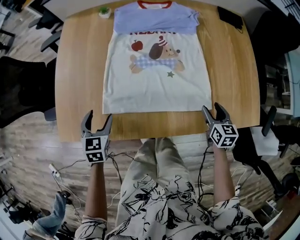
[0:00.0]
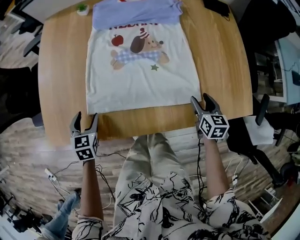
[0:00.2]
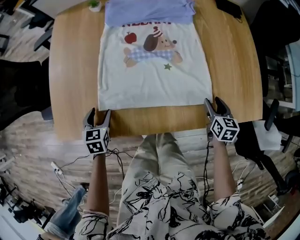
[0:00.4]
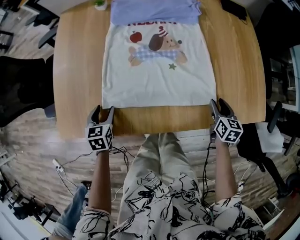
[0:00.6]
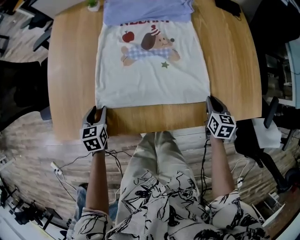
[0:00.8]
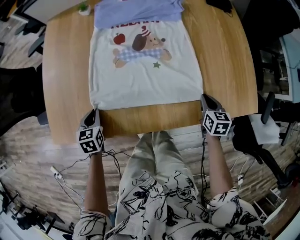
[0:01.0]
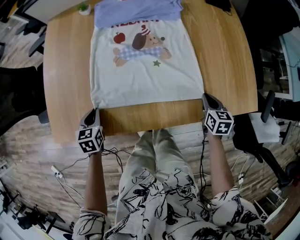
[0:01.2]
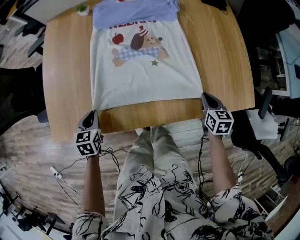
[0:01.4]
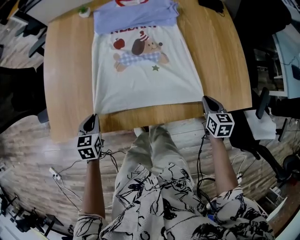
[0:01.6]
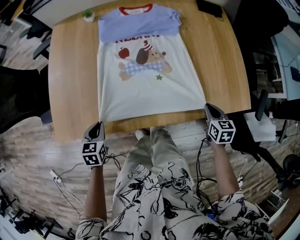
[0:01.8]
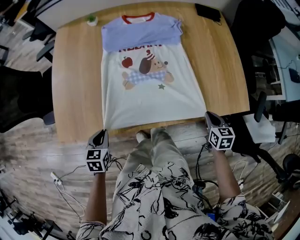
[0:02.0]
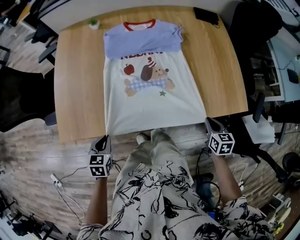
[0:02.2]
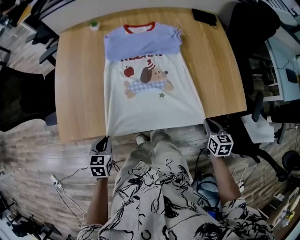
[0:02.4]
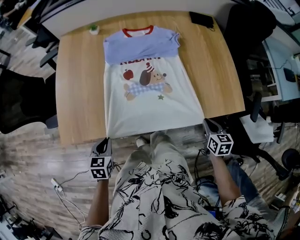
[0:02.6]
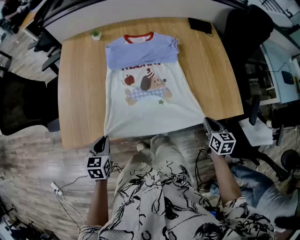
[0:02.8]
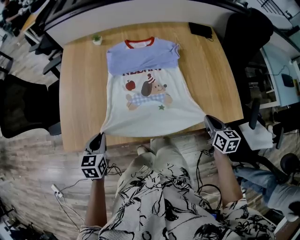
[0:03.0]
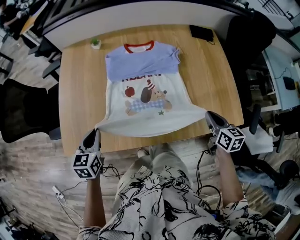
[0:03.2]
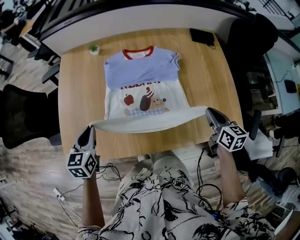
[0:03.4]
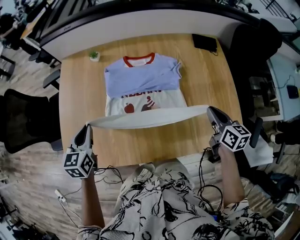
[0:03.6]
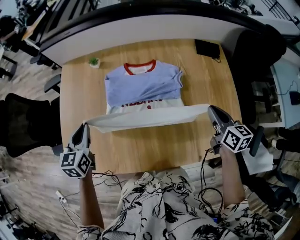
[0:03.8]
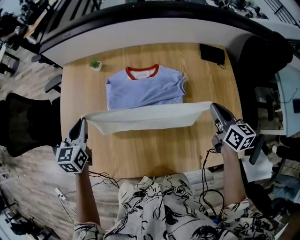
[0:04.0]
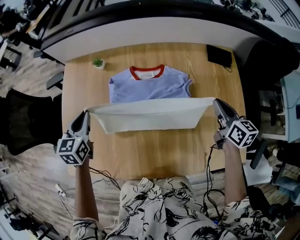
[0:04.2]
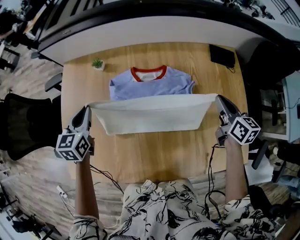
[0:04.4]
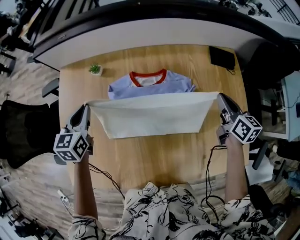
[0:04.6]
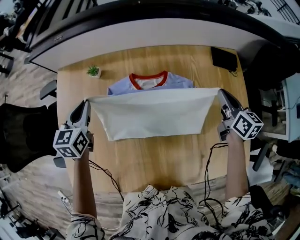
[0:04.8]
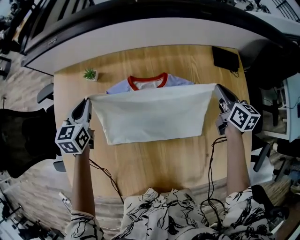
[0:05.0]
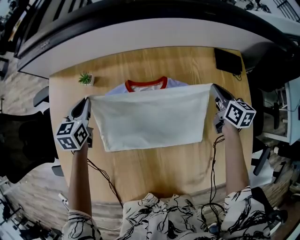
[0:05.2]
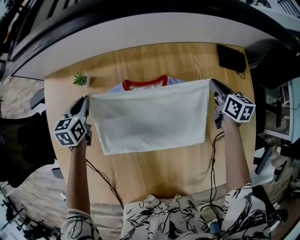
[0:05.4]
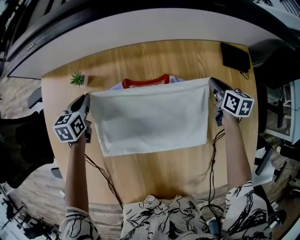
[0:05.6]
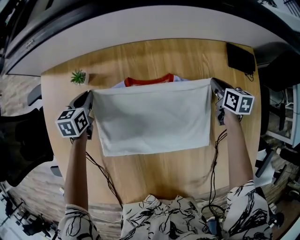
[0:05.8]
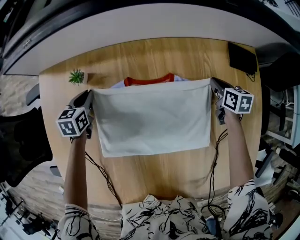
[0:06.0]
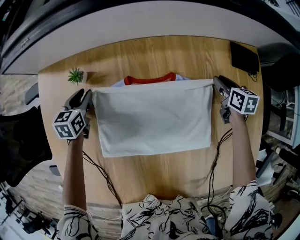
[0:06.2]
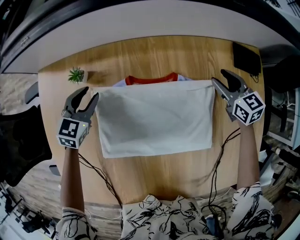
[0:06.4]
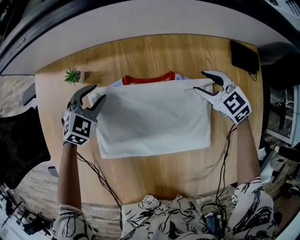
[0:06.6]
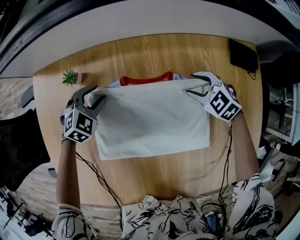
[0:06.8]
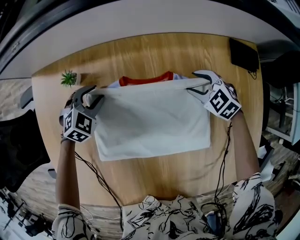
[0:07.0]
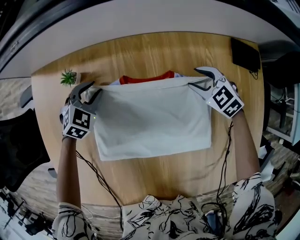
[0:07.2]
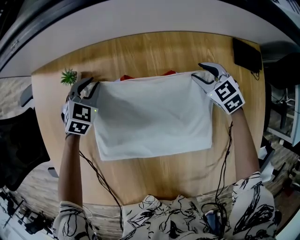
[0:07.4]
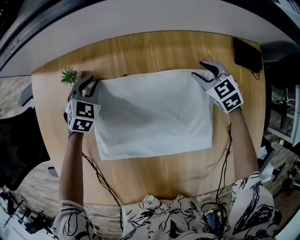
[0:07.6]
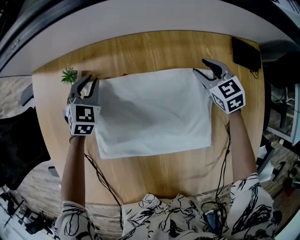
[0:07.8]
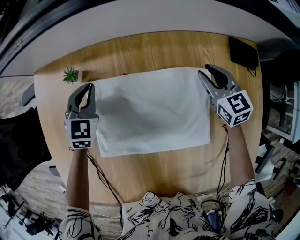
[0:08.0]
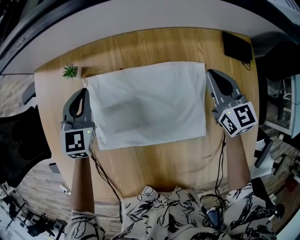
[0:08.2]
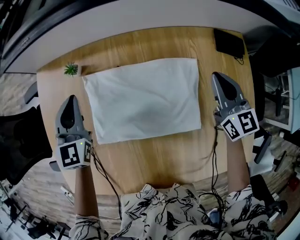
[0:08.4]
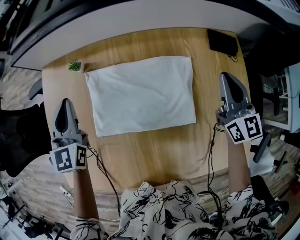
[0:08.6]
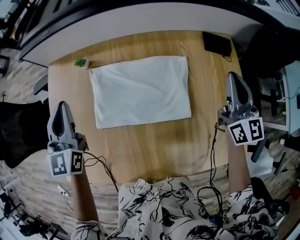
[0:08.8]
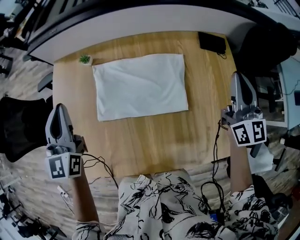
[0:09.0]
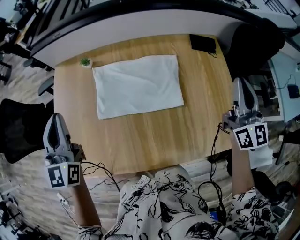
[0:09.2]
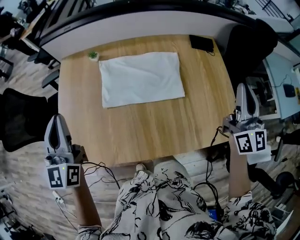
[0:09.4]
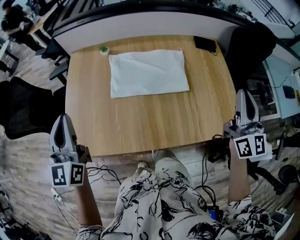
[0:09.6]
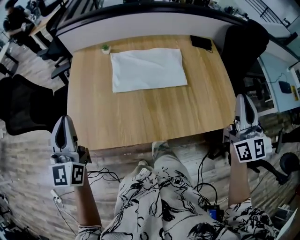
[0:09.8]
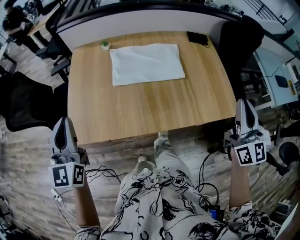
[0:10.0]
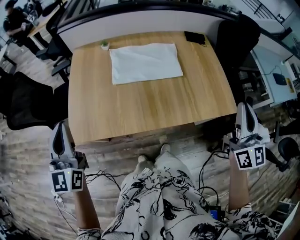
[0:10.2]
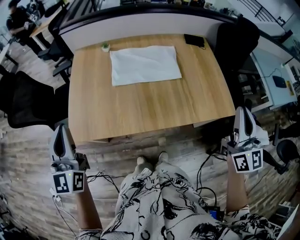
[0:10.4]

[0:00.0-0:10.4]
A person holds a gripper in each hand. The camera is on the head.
0:00.0 to 0:01.4: The left gripper changes place by about 5 cm, and closes its fingers. The right gripper closes up.
0:01.4 to 0:03.0: The right gripper travels upward and backward by approximately 15 cm. Meanwhile the left gripper travels upward by approximately 10 cm.
0:03.0 to 0:04.4: The grippers both shift forward by about 35 cm.
0:04.4 to 0:06.0: Both grippers move downward and forward, approximately 30 cm. The right gripper turns by some 20 degrees.
0:06.0 to 0:07.4: The left gripper is displaced to the right by approximately 5 cm, and twists about 40 degrees clockwise, seen from behind, while the right gripper moves to the left, some 10 cm, and twists about 50 degrees counterclockwise, seen from behind.
0:07.4 to 0:09.0: The grippers both shift upward and backward by some 50 cm. The left gripper tips its fingers upward by about 50 degrees. Meanwhile the right gripper tips its fingers upward by some 50 degrees, and closes its fingers.
0:09.0 to 0:10.4: The pair of grippers is taken backward, approximately 40 cm.

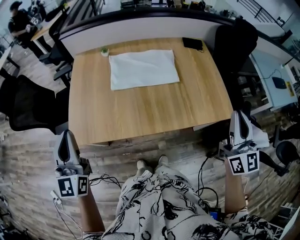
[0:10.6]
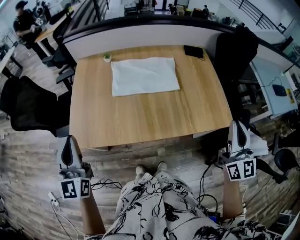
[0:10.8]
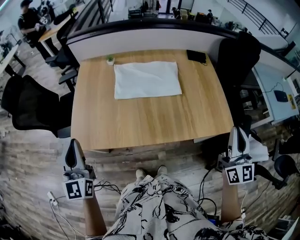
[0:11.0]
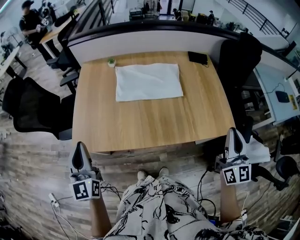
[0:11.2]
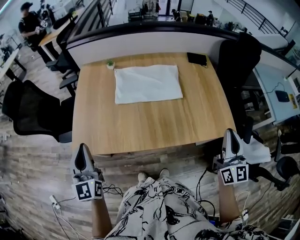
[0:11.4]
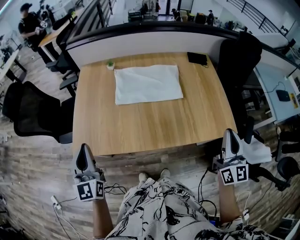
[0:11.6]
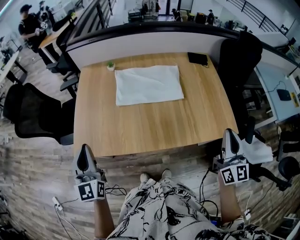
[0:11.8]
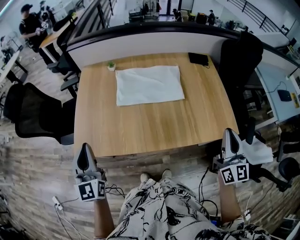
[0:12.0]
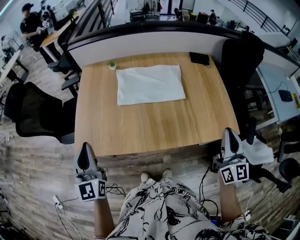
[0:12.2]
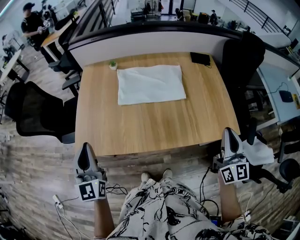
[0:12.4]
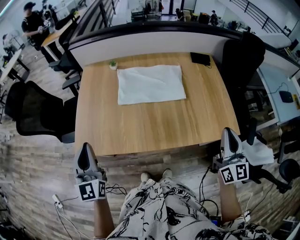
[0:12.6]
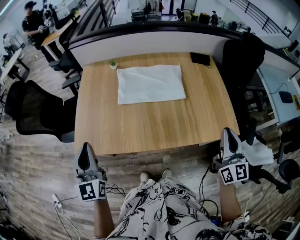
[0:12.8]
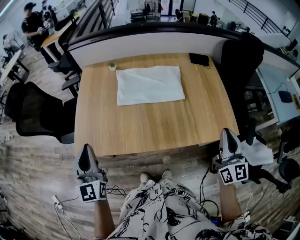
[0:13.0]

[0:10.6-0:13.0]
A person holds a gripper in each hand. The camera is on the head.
0:10.6 to 0:11.8: The grippers both shift downward by approximately 5 cm.
0:11.8 to 0:13.0: The grippers stay close to where they were, moving slightly.

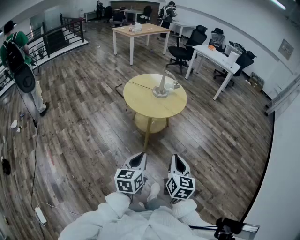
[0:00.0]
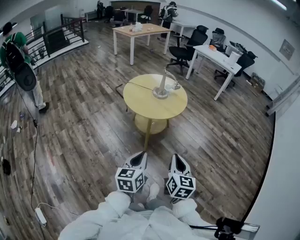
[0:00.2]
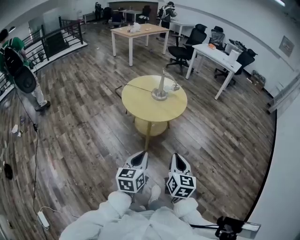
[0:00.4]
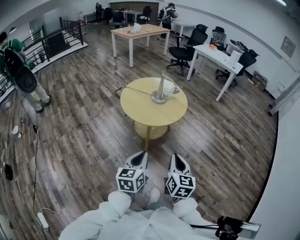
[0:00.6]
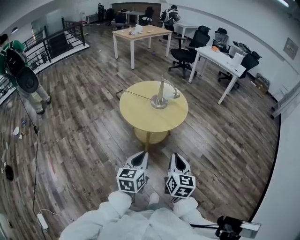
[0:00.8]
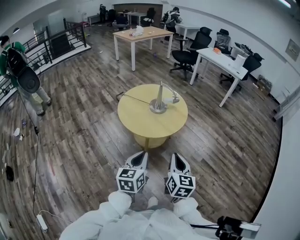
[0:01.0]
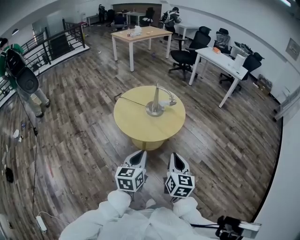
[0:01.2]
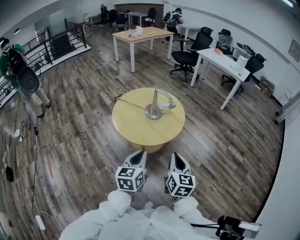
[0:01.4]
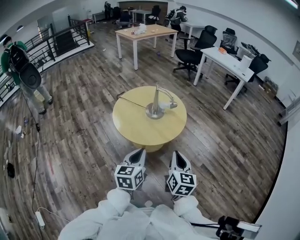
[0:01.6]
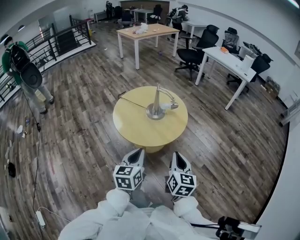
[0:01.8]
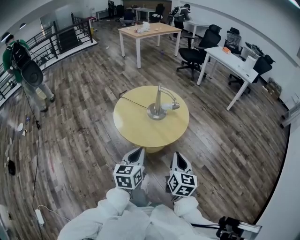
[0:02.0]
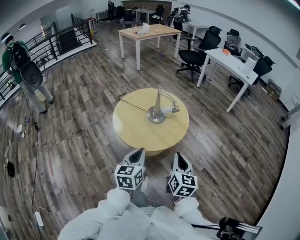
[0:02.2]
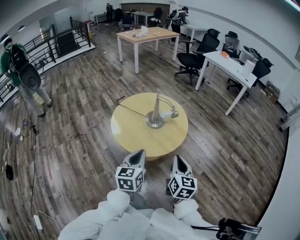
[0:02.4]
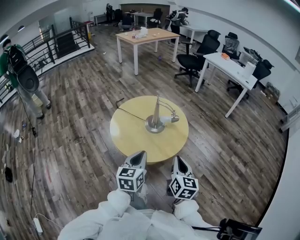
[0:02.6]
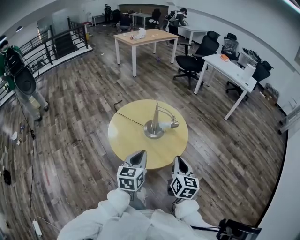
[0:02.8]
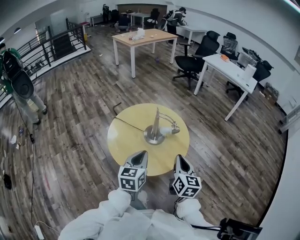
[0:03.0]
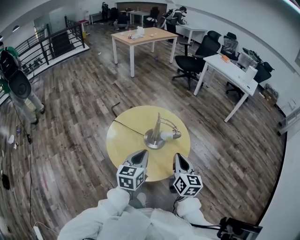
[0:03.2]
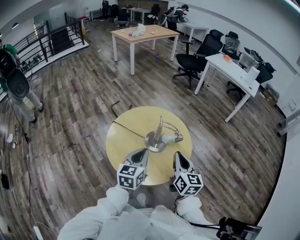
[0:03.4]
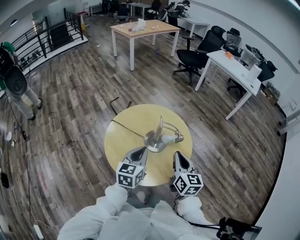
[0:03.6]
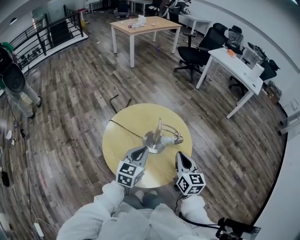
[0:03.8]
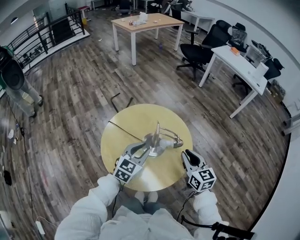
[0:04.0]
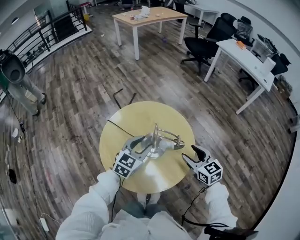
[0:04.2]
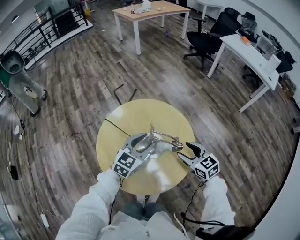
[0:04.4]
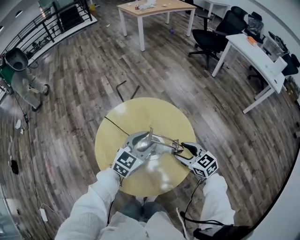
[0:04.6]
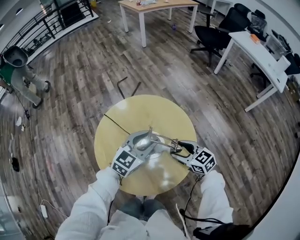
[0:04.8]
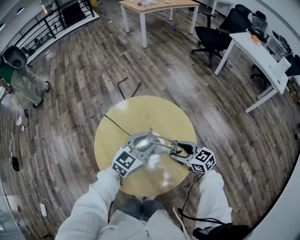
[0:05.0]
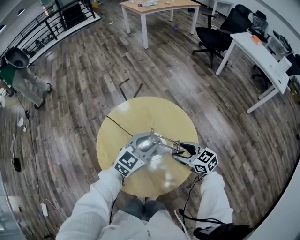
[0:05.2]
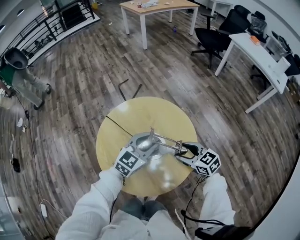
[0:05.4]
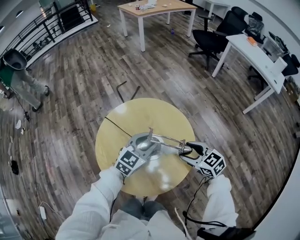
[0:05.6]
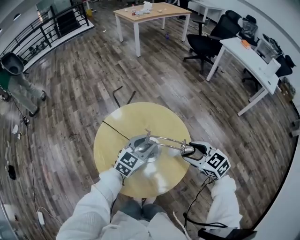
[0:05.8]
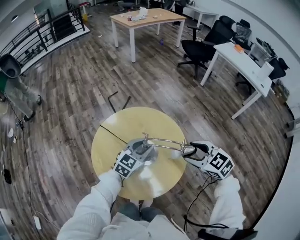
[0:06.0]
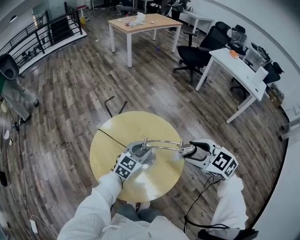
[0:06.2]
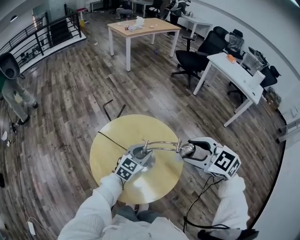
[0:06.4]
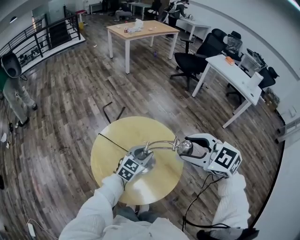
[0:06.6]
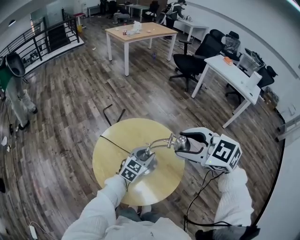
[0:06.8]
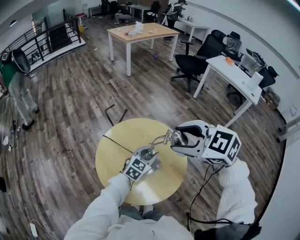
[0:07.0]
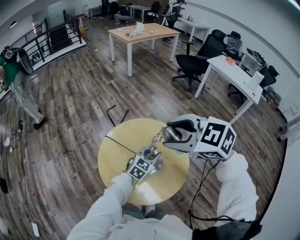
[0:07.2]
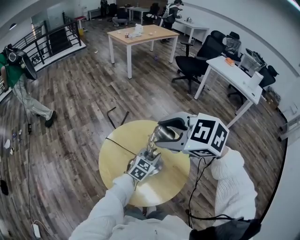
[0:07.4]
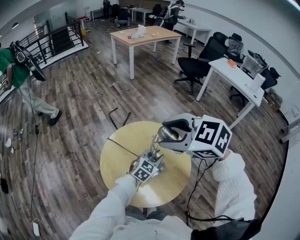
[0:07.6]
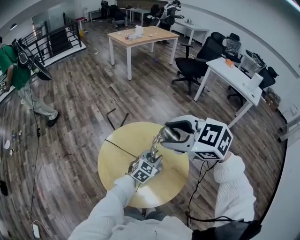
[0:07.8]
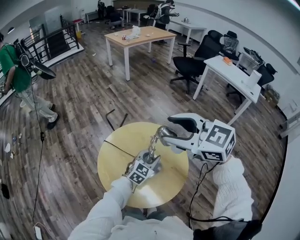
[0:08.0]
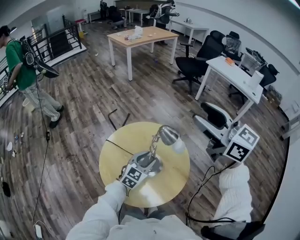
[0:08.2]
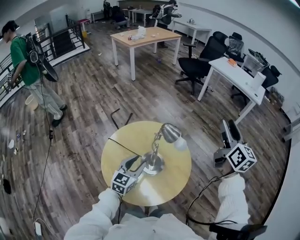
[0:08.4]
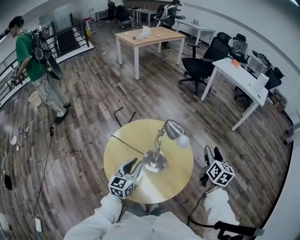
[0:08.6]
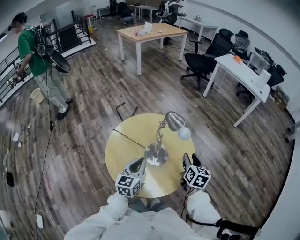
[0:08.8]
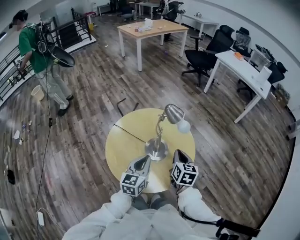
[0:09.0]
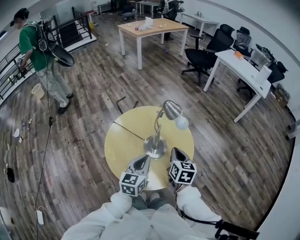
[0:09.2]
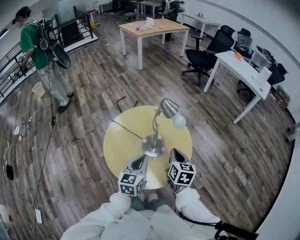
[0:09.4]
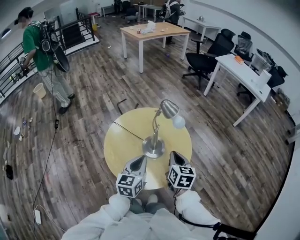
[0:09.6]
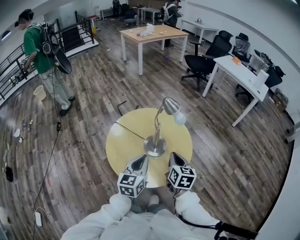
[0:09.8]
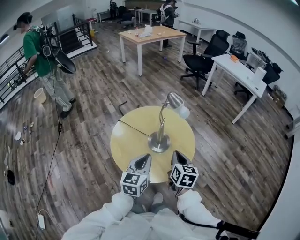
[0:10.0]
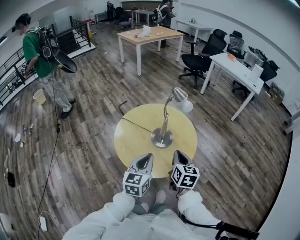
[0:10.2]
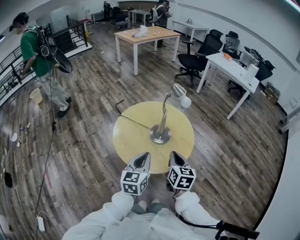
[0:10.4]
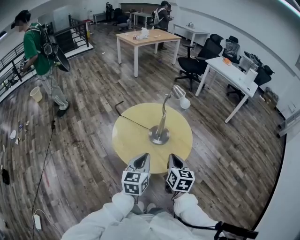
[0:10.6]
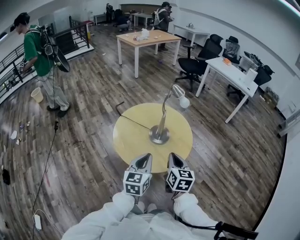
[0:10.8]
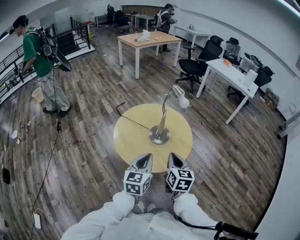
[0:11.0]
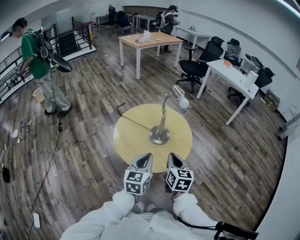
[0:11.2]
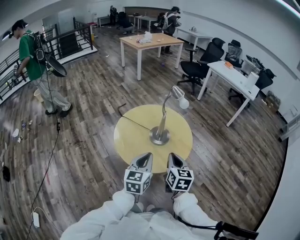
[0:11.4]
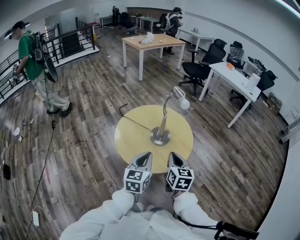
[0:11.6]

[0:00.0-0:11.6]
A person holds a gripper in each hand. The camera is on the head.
0:00.0 to 0:01.4: Both grippers move forward, some 30 cm.
0:01.4 to 0:02.8: Both grippers move forward, approximately 20 cm.
0:02.8 to 0:04.4: Both grippers move forward, roughly 30 cm. The left gripper rotates some 30 degrees, and opens. The right gripper rotates about 50 degrees, and opens up.
0:04.4 to 0:05.8: The right gripper is displaced upward by about 5 cm.
0:05.8 to 0:07.2: The right gripper heads upward and to the left, covering some 30 cm.
0:07.2 to 0:08.8: The right gripper travels downward by about 25 cm, and swivels roughly 80 degrees. Meanwhile the left gripper changes place by some 15 cm, rotates roughly 30 degrees, and closes.
0:08.8 to 0:10.2: The left gripper shifts about 15 cm backward. Meanwhile the right gripper goes approximately 20 cm backward and to the left, and closes.
0:10.2 to 0:11.6: The right gripper goes some 5 cm backward, while the left gripper changes place by about 5 cm.
